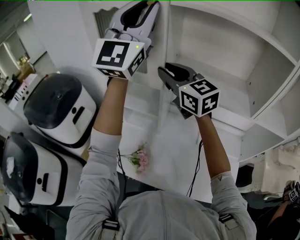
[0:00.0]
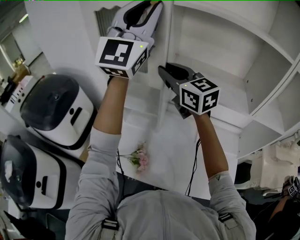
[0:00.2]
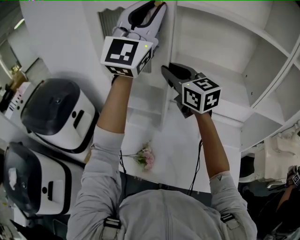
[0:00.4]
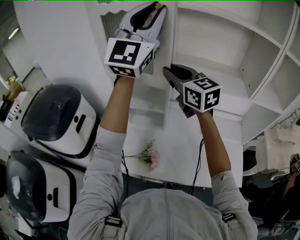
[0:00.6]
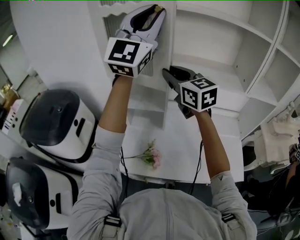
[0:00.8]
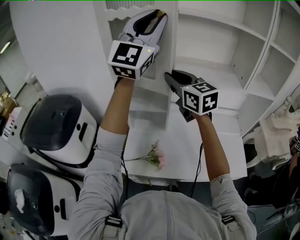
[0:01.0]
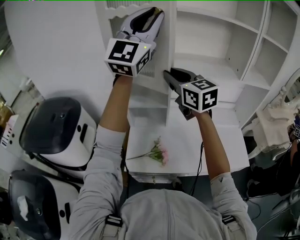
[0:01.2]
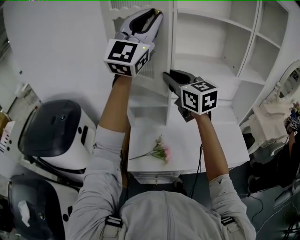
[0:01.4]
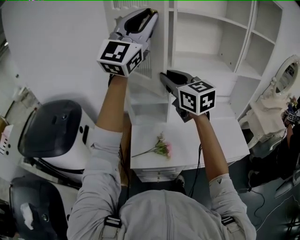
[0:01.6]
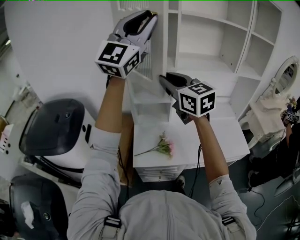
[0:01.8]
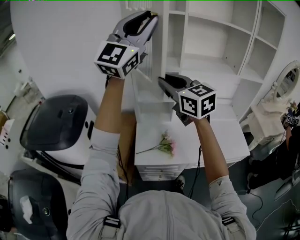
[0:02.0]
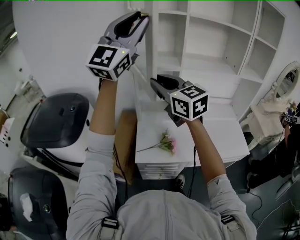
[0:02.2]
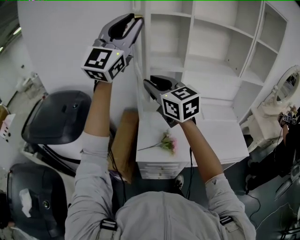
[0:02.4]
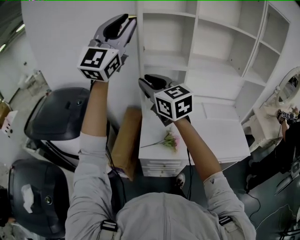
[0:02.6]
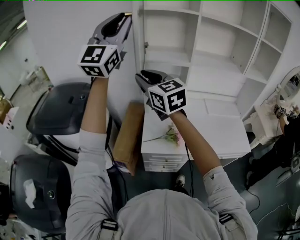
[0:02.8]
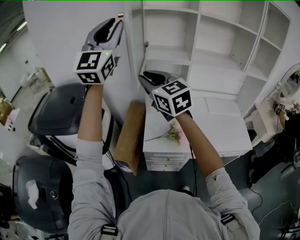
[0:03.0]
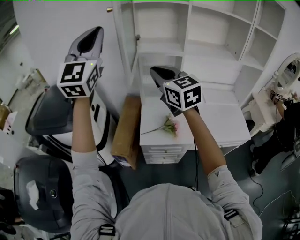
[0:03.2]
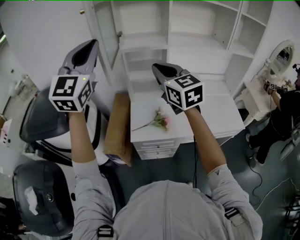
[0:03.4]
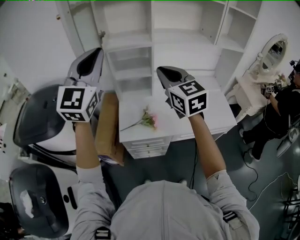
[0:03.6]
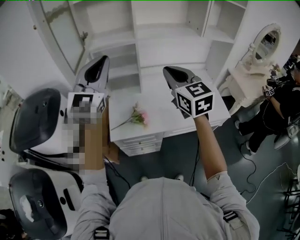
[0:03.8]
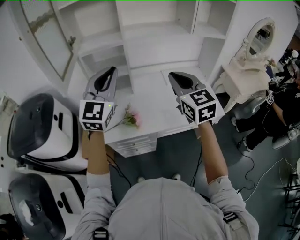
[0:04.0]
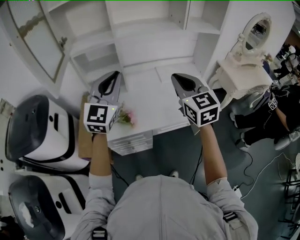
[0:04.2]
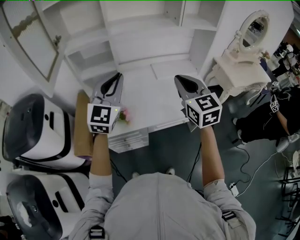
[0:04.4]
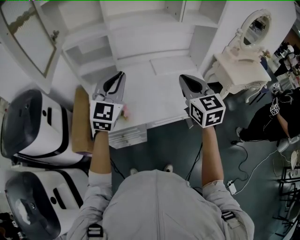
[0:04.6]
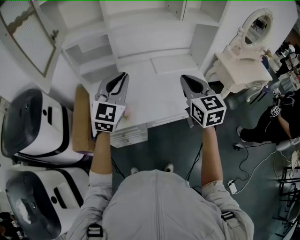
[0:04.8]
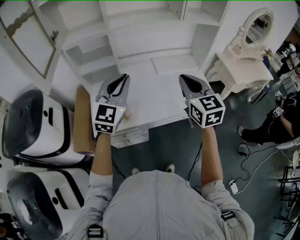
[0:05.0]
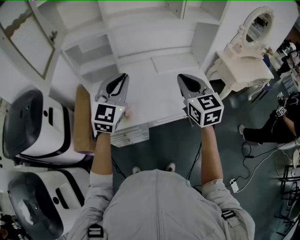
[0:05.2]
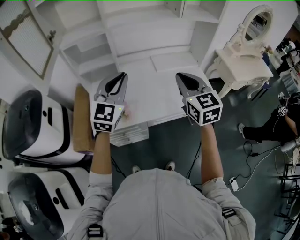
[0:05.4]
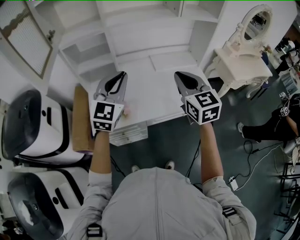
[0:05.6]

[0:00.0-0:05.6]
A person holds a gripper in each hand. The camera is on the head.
0:00.0 to 0:01.4: The two grippers go about 15 cm backward and to the left. The right gripper turns by approximately 20 degrees. Meanwhile the left gripper changes its angle by some 20 degrees.
0:01.4 to 0:02.8: Both grippers travel together to the left and backward, roughly 25 cm.
0:02.8 to 0:04.2: The left gripper is displaced downward and to the right by some 40 cm, and turns by roughly 30 degrees; the right gripper shifts roughly 40 cm to the right, changes its angle by some 30 degrees, and closes.
0:04.2 to 0:05.6: The right gripper moves roughly 5 cm; the left gripper goes some 5 cm downward.

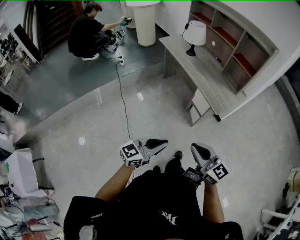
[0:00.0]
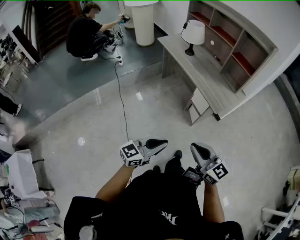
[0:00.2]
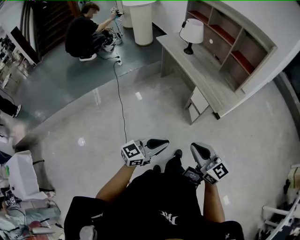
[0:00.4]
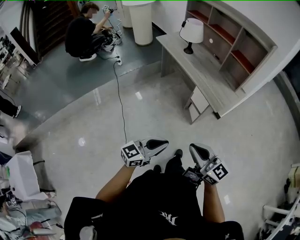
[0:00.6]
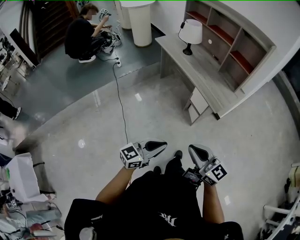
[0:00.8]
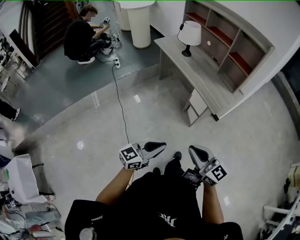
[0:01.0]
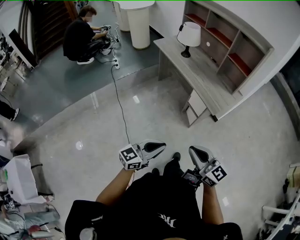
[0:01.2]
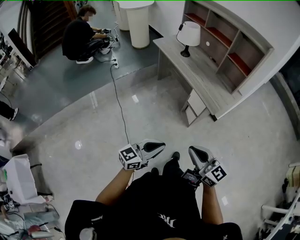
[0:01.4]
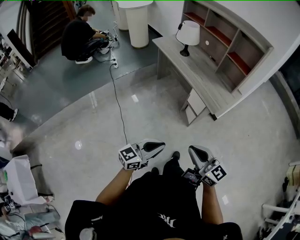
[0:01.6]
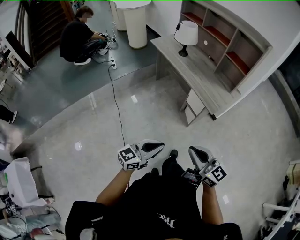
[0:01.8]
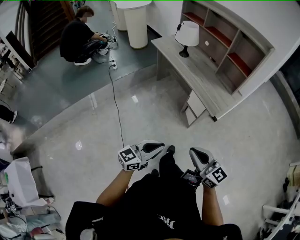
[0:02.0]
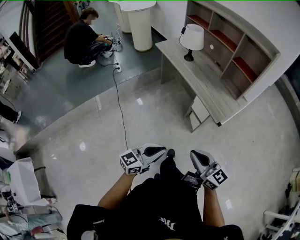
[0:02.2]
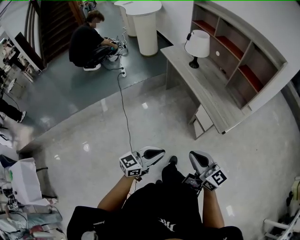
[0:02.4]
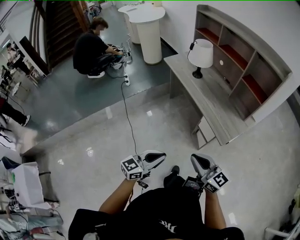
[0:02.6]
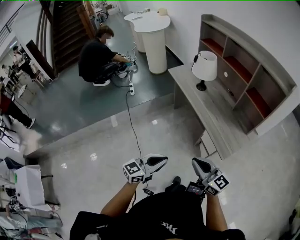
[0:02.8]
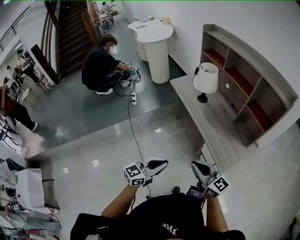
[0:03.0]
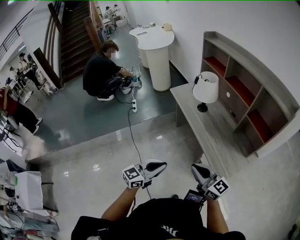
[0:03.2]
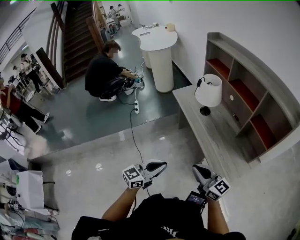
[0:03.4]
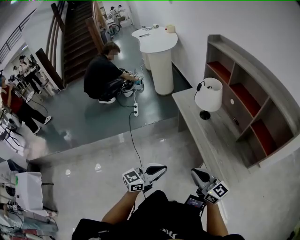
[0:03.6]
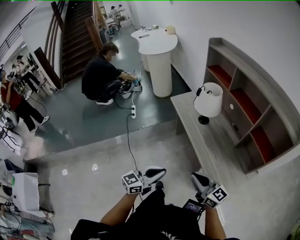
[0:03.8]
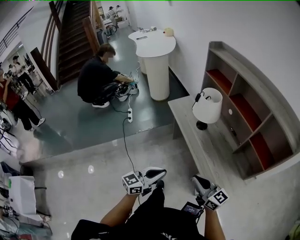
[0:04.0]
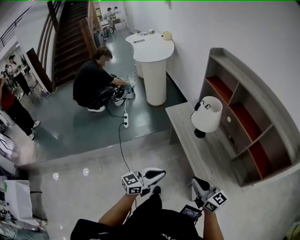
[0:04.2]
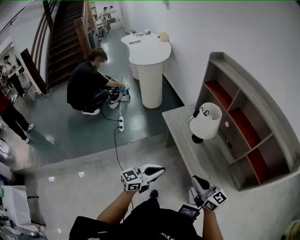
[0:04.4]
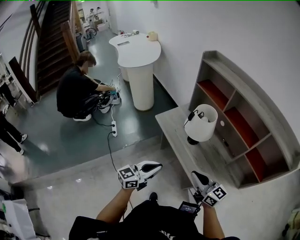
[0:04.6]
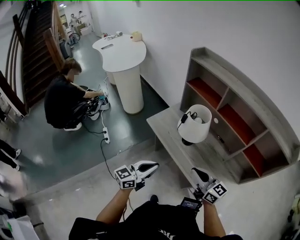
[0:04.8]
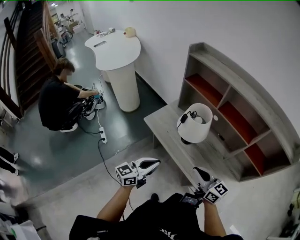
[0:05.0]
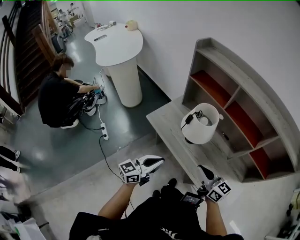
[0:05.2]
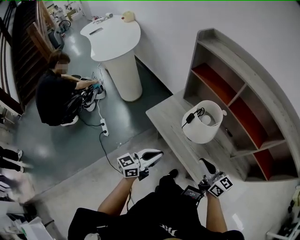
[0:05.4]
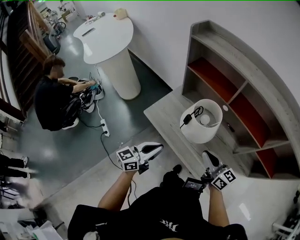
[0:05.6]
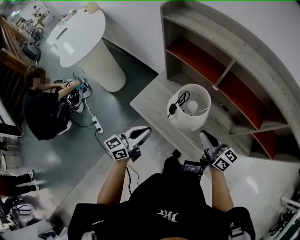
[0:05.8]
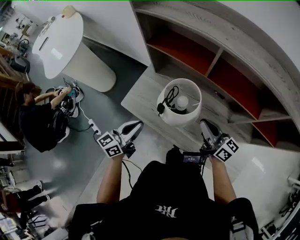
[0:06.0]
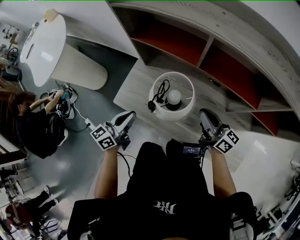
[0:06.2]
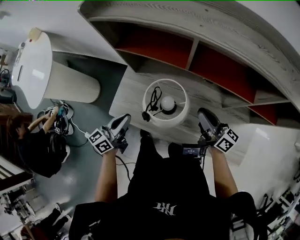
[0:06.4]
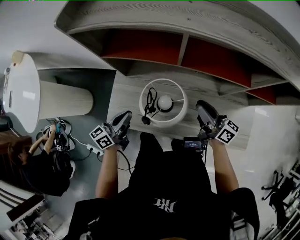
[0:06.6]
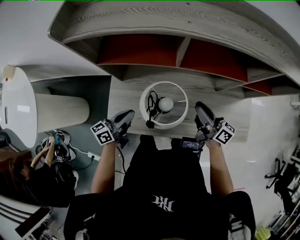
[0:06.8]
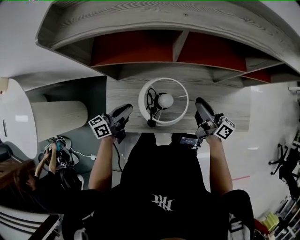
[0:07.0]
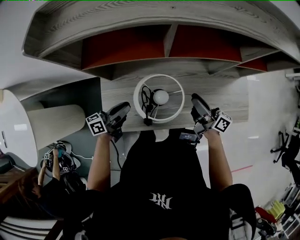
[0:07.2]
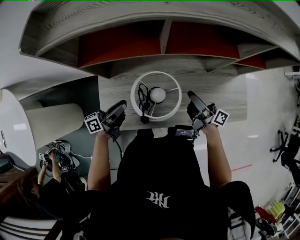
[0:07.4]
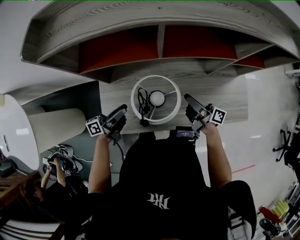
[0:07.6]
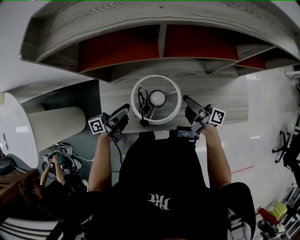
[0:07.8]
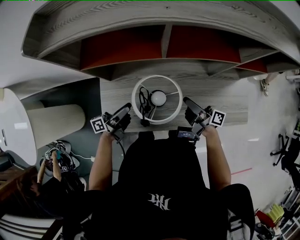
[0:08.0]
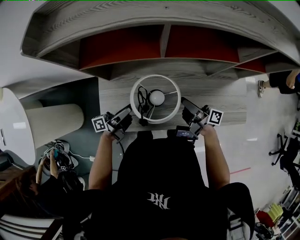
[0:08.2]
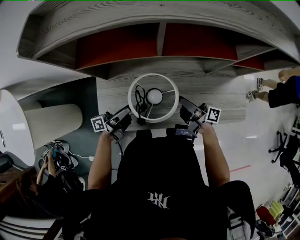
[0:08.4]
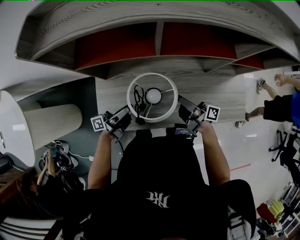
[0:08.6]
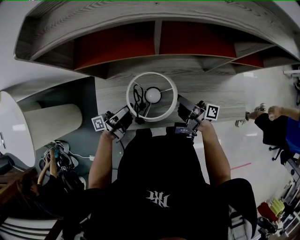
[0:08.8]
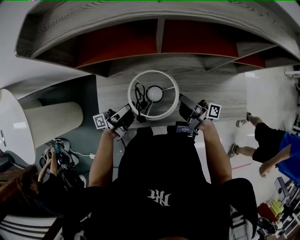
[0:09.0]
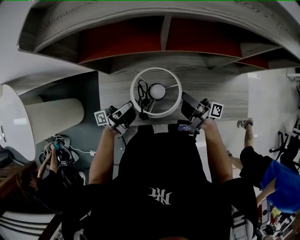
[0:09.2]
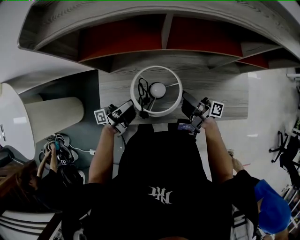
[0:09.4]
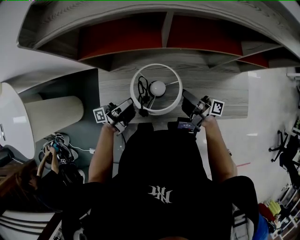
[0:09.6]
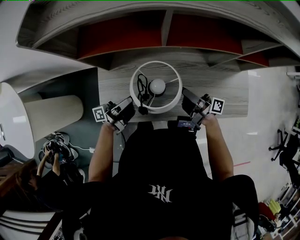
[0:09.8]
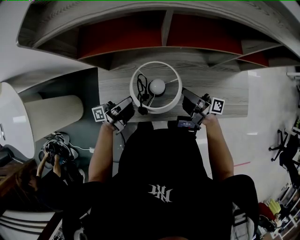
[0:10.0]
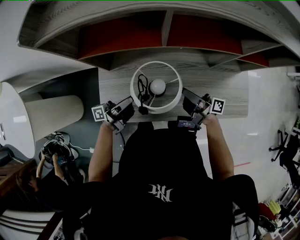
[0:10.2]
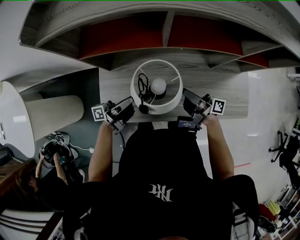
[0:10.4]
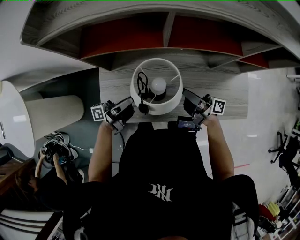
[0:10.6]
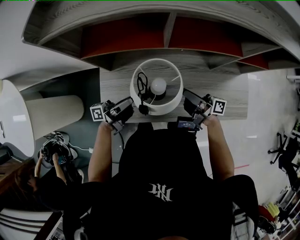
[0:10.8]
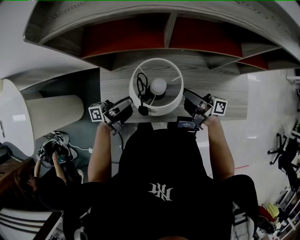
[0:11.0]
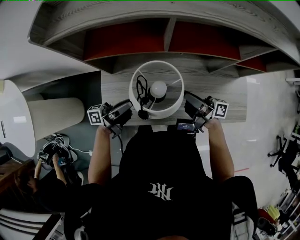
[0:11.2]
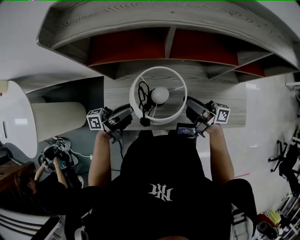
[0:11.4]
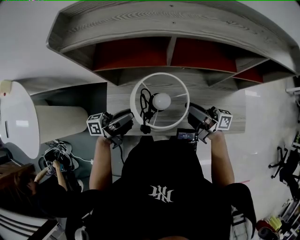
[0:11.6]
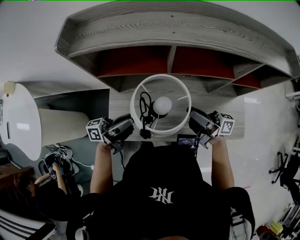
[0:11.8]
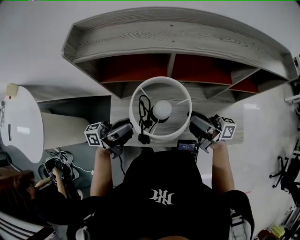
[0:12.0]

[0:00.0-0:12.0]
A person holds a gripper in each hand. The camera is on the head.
0:00.0 to 0:01.6: The grippers make only small movements.
0:01.6 to 0:03.0: Both grippers travel together forward, some 30 cm.
0:03.0 to 0:04.4: The two grippers go about 30 cm forward.
0:04.4 to 0:06.0: The two grippers go about 35 cm forward. The right gripper turns by roughly 40 degrees; the left gripper turns by roughly 20 degrees.
0:06.0 to 0:07.6: The right gripper travels downward by about 10 cm, rotates approximately 50 degrees, and opens up. Meanwhile the left gripper shifts by approximately 20 cm, rotates roughly 50 degrees, and opens.
0:07.6 to 0:09.0: The left gripper changes its angle by about 20 degrees.
0:09.0 to 0:10.4: The left gripper closes.
0:10.4 to 0:12.0: Both grippers move upward, roughly 20 cm. The right gripper changes its angle by approximately 20 degrees; the left gripper turns by some 20 degrees.

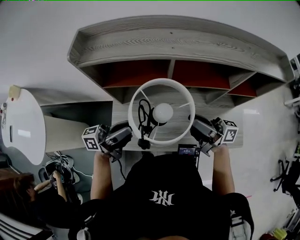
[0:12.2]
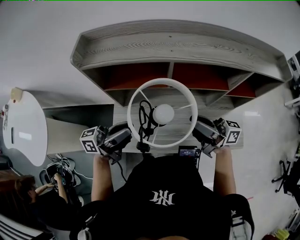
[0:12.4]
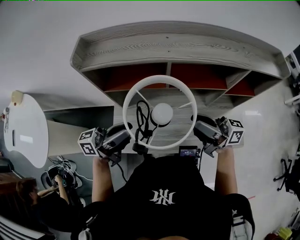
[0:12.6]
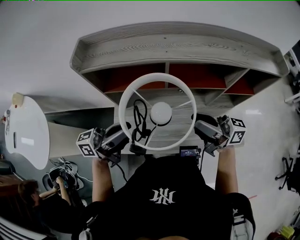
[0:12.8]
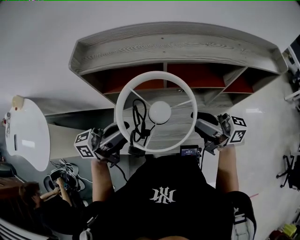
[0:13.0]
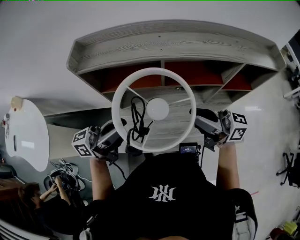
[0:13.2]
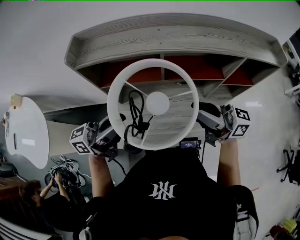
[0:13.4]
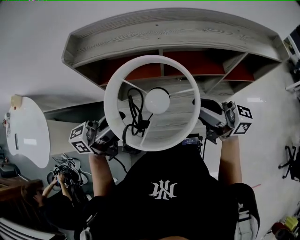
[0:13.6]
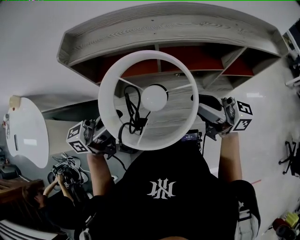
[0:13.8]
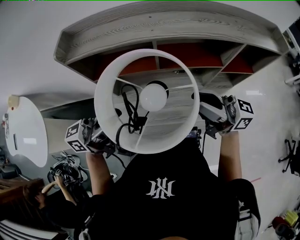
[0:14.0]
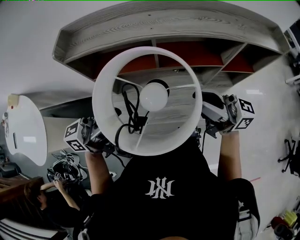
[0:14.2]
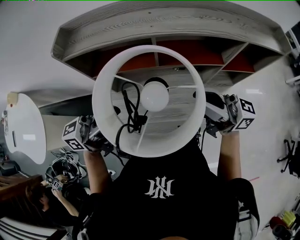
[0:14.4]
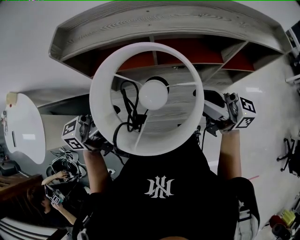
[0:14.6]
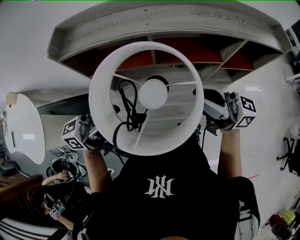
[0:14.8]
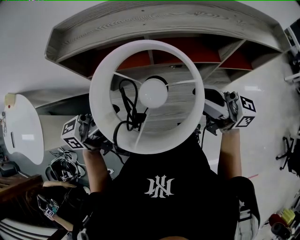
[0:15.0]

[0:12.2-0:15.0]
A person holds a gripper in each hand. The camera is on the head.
0:12.2 to 0:13.6: The grippers both shift upward by about 10 cm. The right gripper changes its angle by some 20 degrees.
0:13.6 to 0:15.0: The two grippers keep their place.

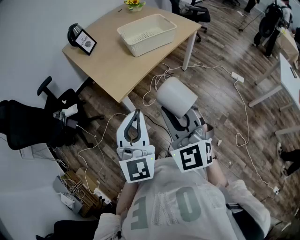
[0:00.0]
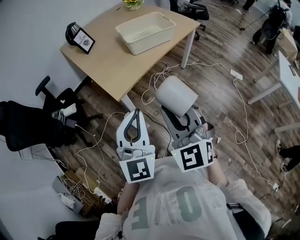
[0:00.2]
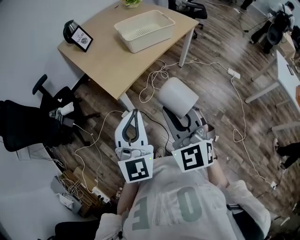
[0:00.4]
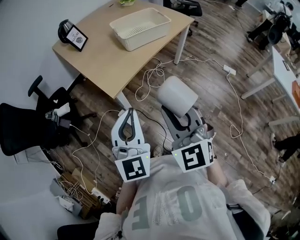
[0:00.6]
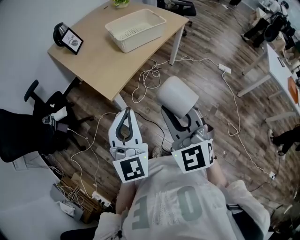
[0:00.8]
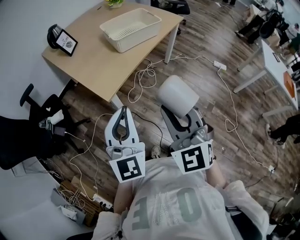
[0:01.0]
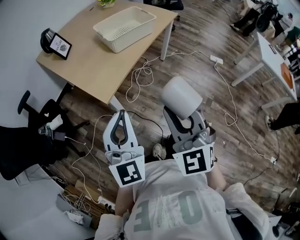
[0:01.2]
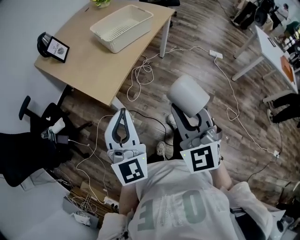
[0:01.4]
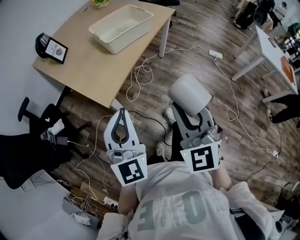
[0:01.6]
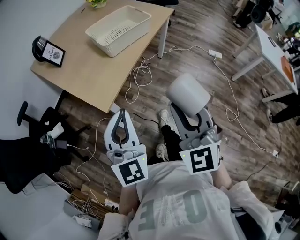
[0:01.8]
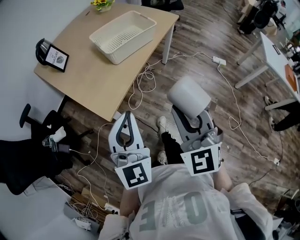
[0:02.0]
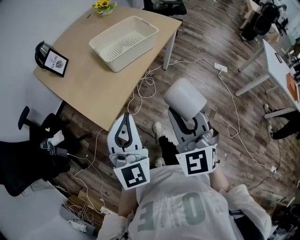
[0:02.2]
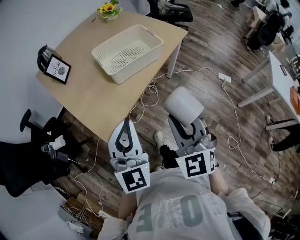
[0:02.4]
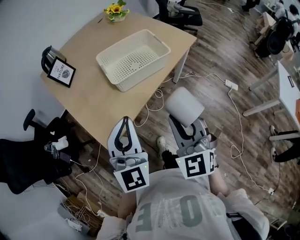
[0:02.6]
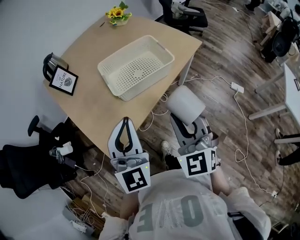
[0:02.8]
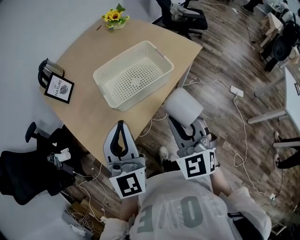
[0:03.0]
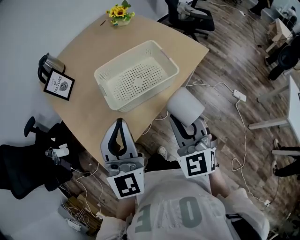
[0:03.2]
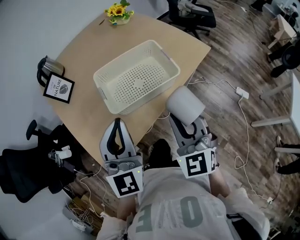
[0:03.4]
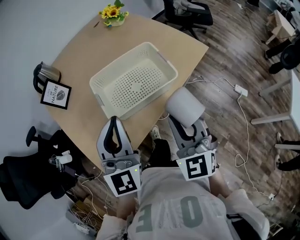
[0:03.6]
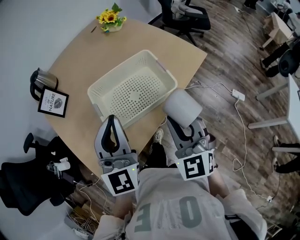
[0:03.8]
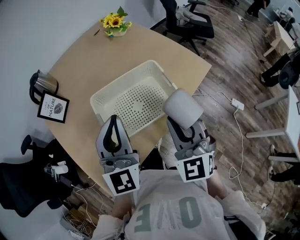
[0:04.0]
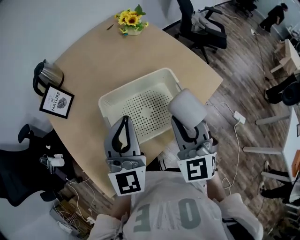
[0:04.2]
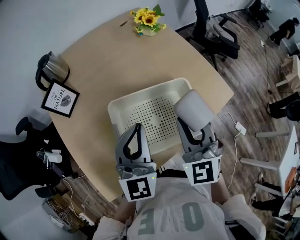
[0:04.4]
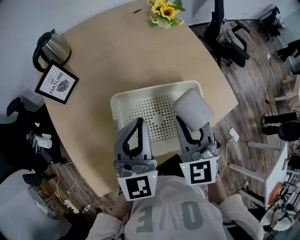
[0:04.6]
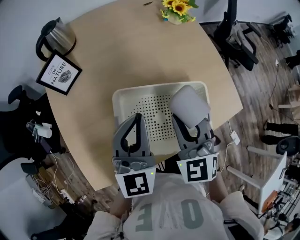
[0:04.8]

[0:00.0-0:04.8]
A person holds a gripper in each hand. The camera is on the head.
0:00.0 to 0:01.6: The left gripper heads to the left and forward, covering about 10 cm.
0:01.6 to 0:03.2: The grippers both shift forward by about 35 cm.
0:03.2 to 0:04.8: Both grippers travel together forward, about 30 cm. The right gripper turns by roughly 30 degrees.
